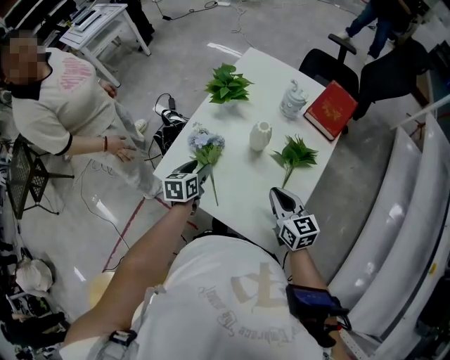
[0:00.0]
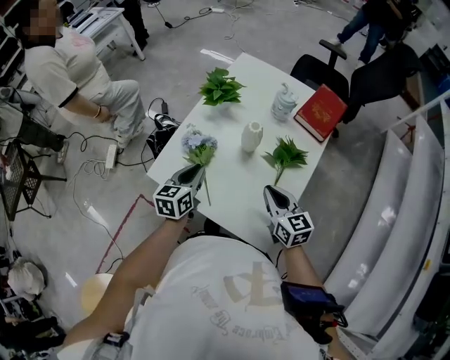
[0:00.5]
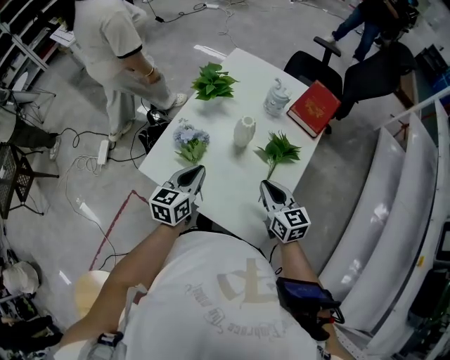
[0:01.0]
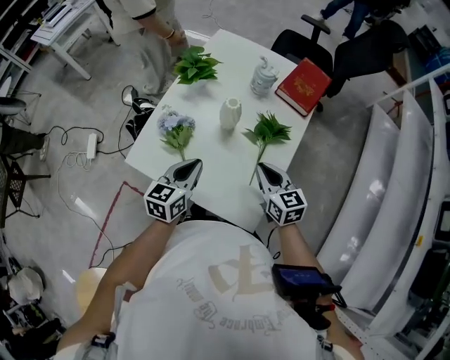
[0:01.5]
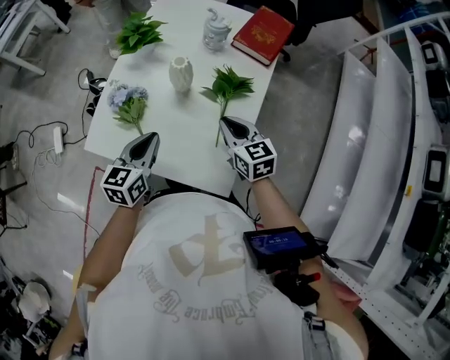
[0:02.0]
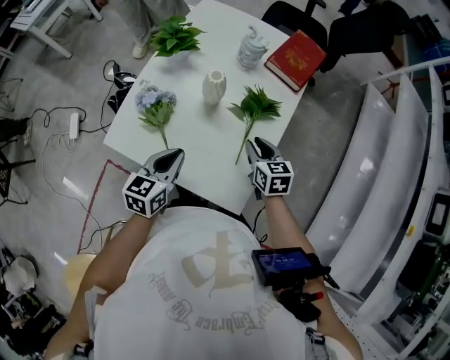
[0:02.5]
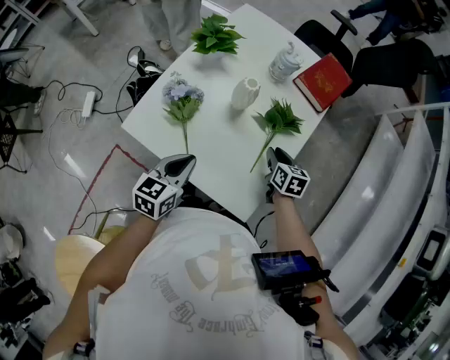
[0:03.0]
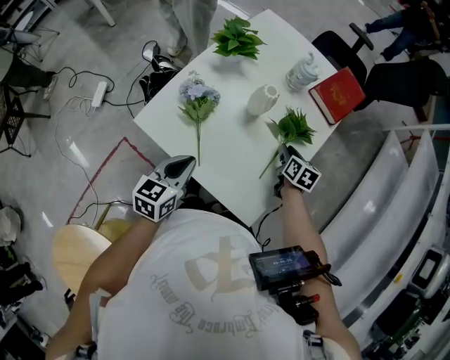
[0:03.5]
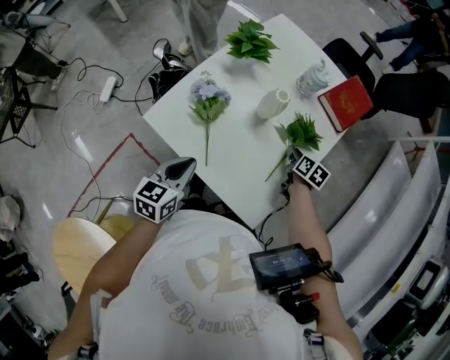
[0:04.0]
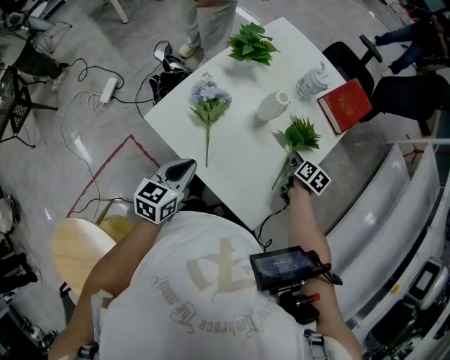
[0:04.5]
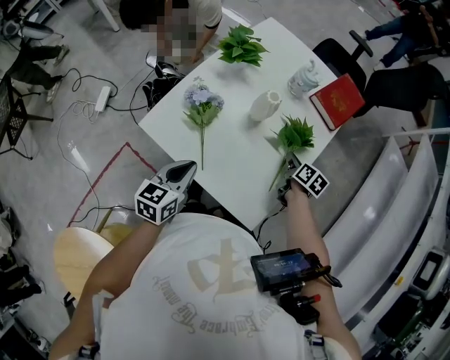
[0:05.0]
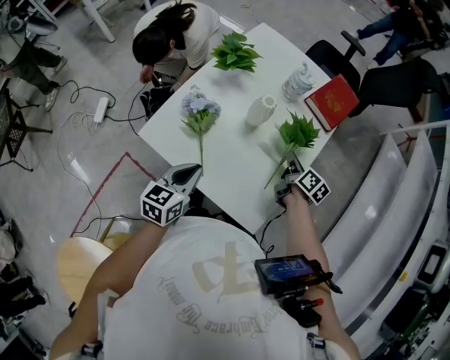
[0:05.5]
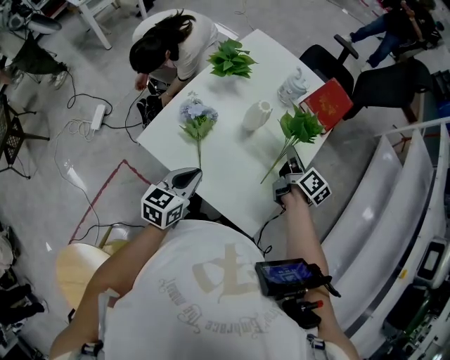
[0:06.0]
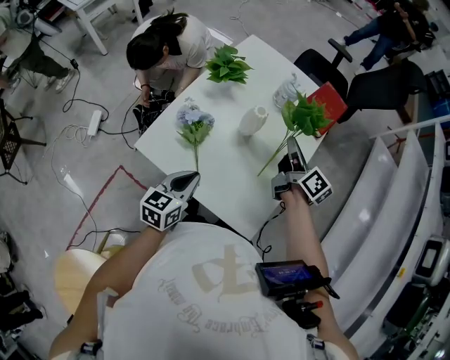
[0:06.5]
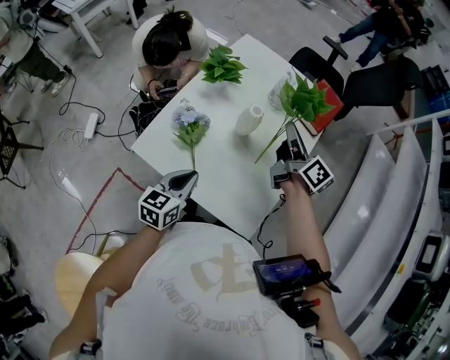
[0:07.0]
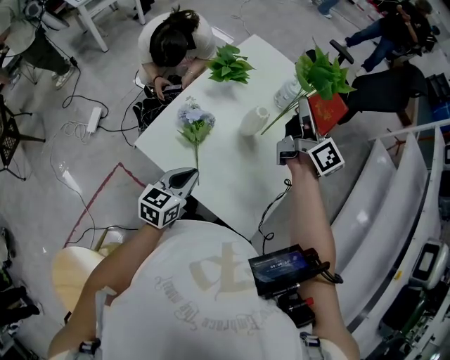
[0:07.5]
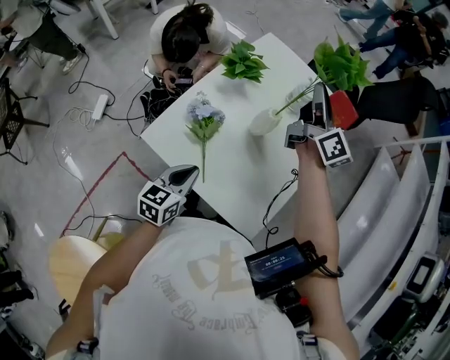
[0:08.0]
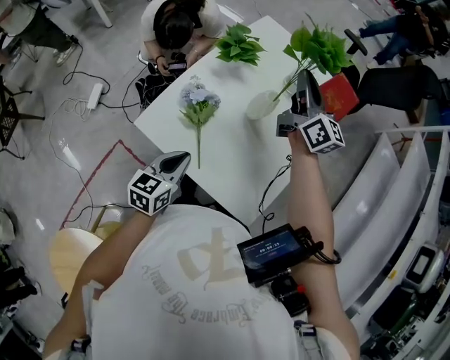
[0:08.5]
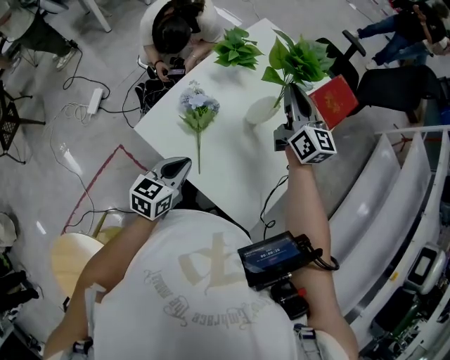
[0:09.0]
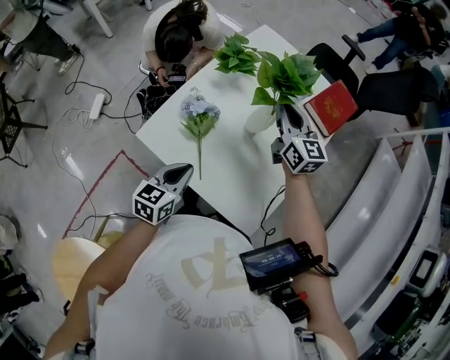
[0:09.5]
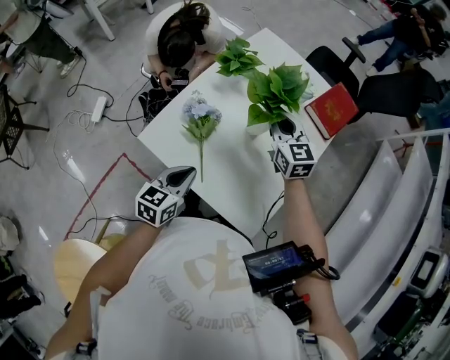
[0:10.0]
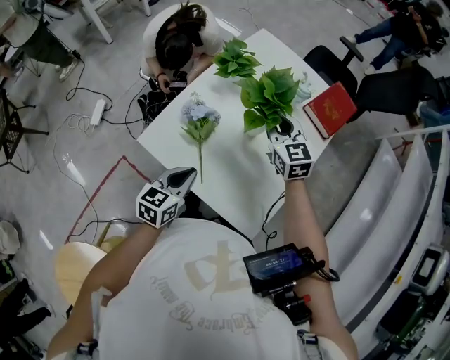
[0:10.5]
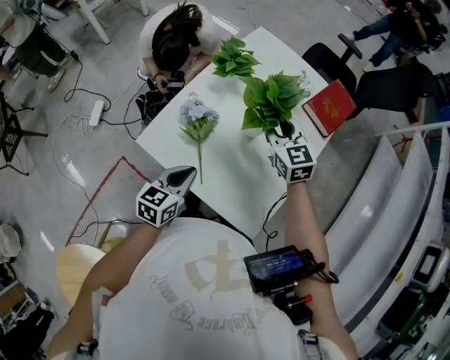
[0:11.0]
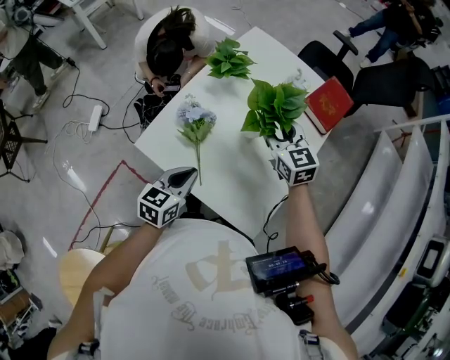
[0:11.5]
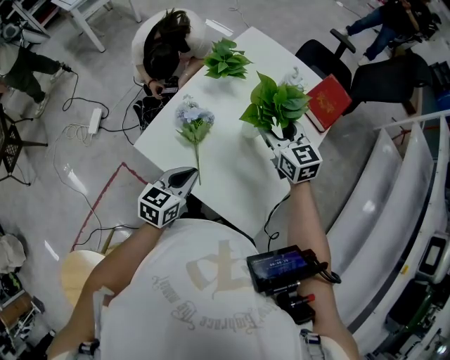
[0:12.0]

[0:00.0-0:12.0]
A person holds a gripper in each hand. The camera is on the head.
0:00.0 to 0:02.0: The right gripper is displaced to the right by about 5 cm; the left gripper goes about 15 cm to the right, upward and backward, changes its angle by approximately 20 degrees, and closes up.
0:02.0 to 0:04.0: The right gripper heads downward and forward, covering approximately 15 cm, and swivels some 30 degrees. Meanwhile the left gripper moves to the left and backward, about 10 cm.
0:04.0 to 0:06.0: The right gripper heads upward, covering approximately 15 cm, and changes its angle by about 30 degrees.
0:06.0 to 0:08.0: The right gripper heads upward, forward and to the left, covering some 25 cm, and tilts its fingers about 30 degrees upward.
0:08.0 to 0:10.0: The right gripper shifts roughly 15 cm downward, backward and to the left, and changes its angle by roughly 50 degrees.
0:10.0 to 0:12.0: The right gripper opens.

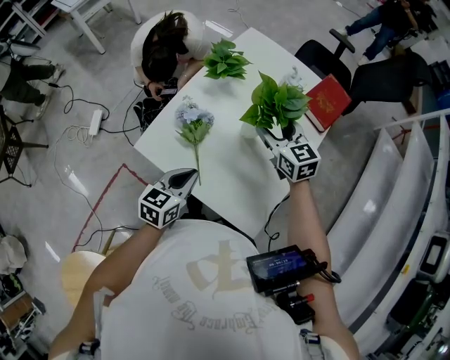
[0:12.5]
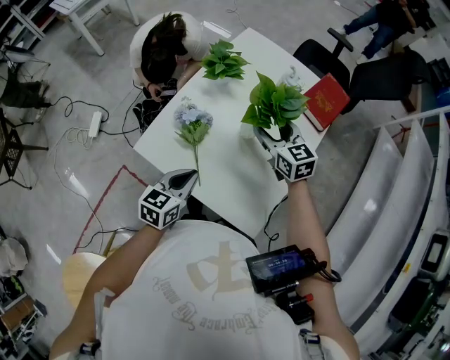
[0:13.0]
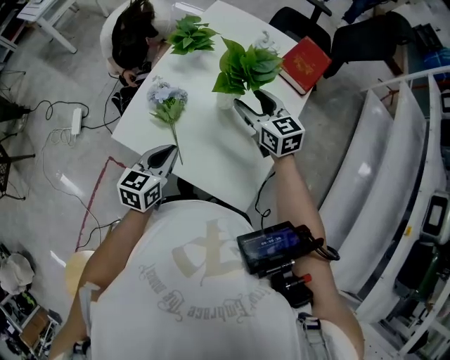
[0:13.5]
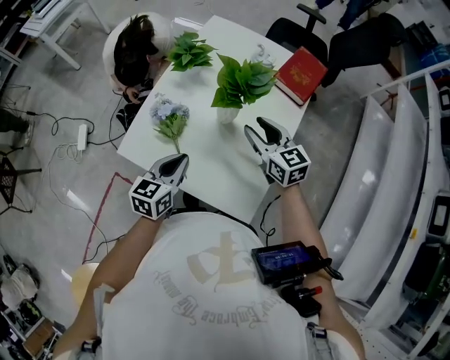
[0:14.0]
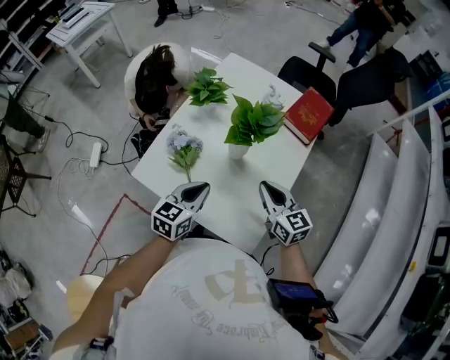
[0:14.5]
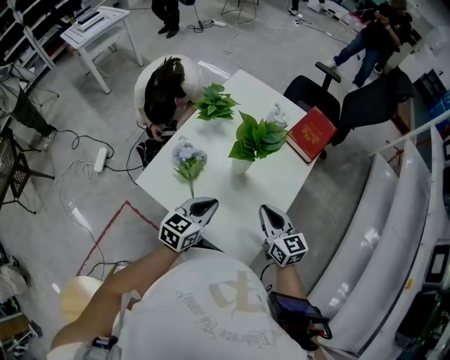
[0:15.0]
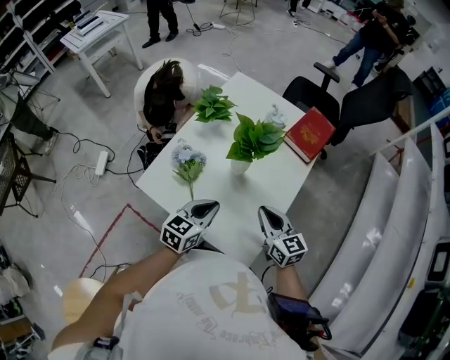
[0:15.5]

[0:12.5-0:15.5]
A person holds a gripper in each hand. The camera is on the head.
0:12.5 to 0:14.0: The right gripper travels backward and to the right by roughly 10 cm.
0:14.0 to 0:15.5: The left gripper shifts approximately 5 cm to the right; the right gripper heads backward, covering about 10 cm, and closes its fingers.

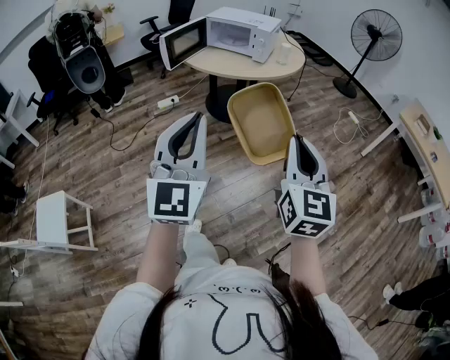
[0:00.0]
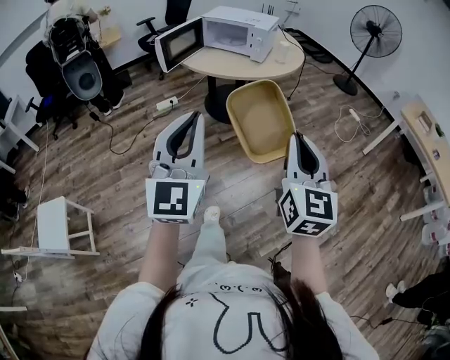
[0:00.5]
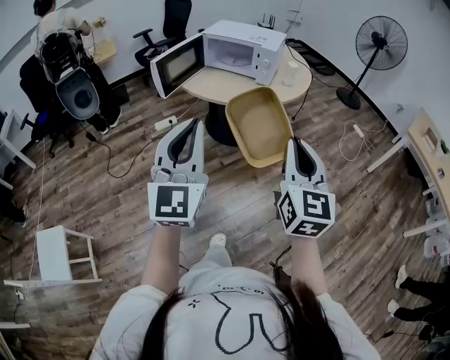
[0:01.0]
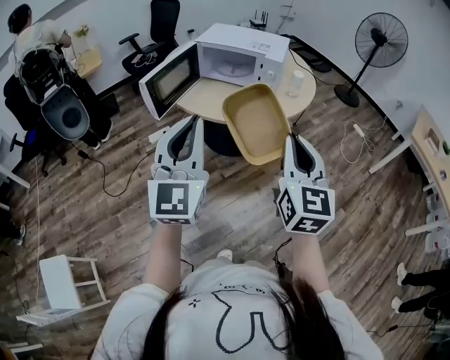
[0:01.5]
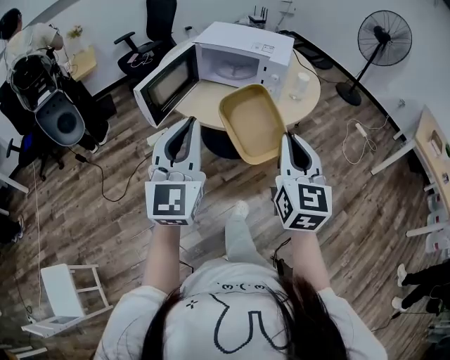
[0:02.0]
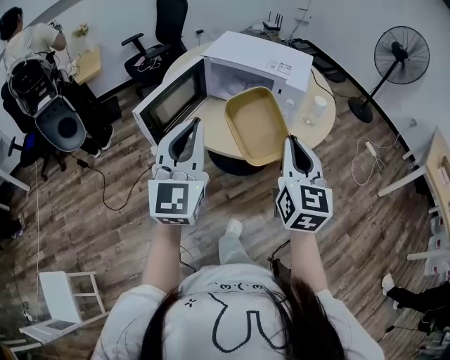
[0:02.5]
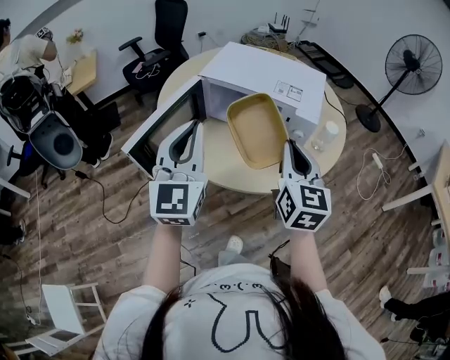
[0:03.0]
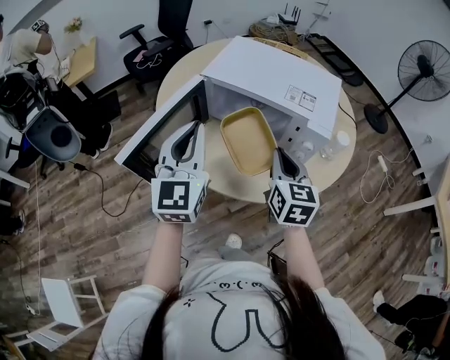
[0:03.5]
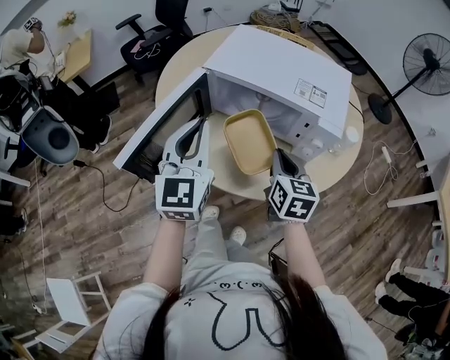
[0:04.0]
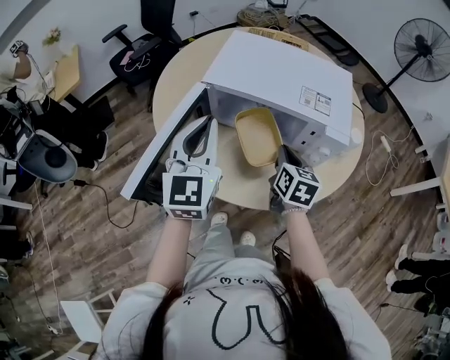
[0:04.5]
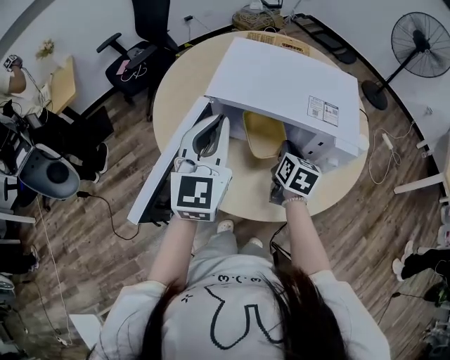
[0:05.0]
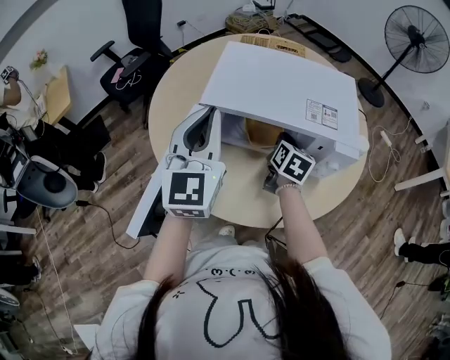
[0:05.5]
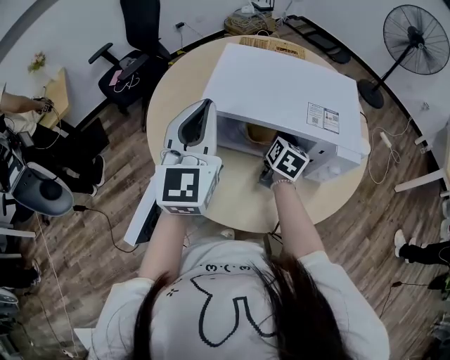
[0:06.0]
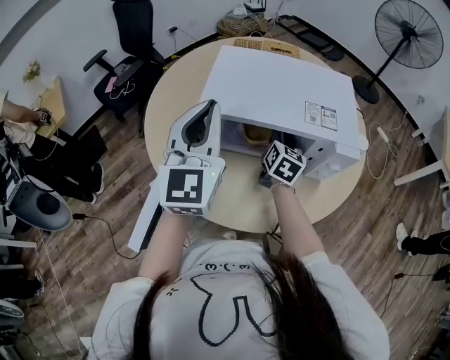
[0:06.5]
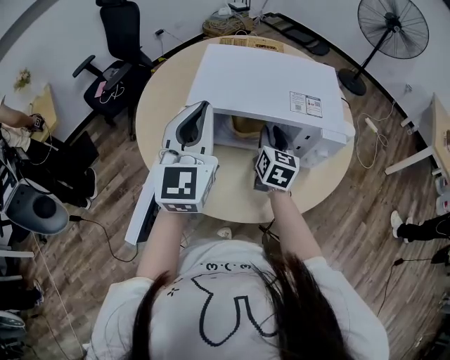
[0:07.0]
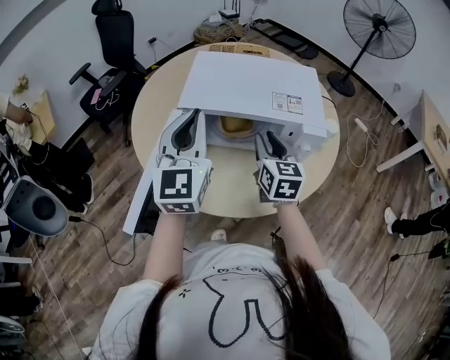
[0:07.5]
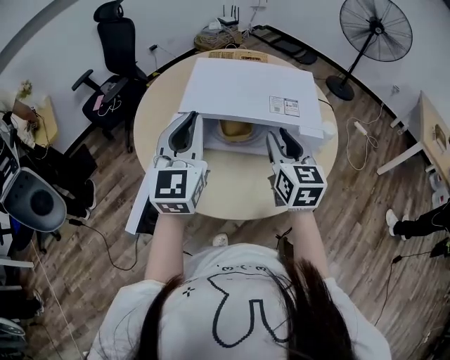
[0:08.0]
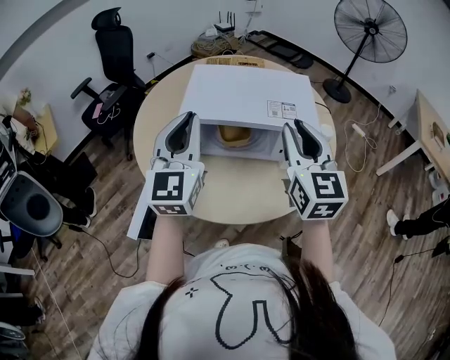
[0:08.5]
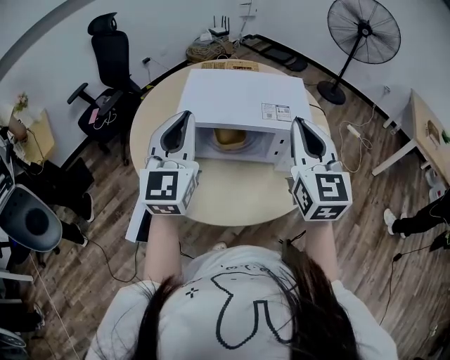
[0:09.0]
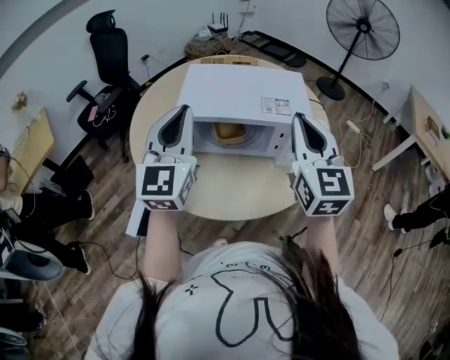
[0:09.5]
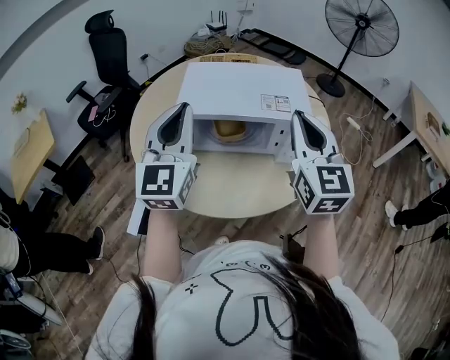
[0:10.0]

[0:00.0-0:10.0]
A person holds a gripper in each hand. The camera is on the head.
0:00.0 to 0:02.0: The two grippers travel together, forward, about 40 cm.
0:02.0 to 0:04.0: The right gripper is displaced forward and downward by approximately 40 cm, and swivels about 30 degrees. Meanwhile the left gripper heads forward, covering roughly 40 cm.
0:04.0 to 0:06.0: The grippers both shift forward by approximately 15 cm. The right gripper rotates some 30 degrees.
0:06.0 to 0:08.0: The left gripper is displaced backward by approximately 5 cm; the right gripper moves upward and backward, some 25 cm, swivels some 30 degrees, and opens up.
0:08.0 to 0:10.0: The right gripper goes about 10 cm upward, and closes its fingers.

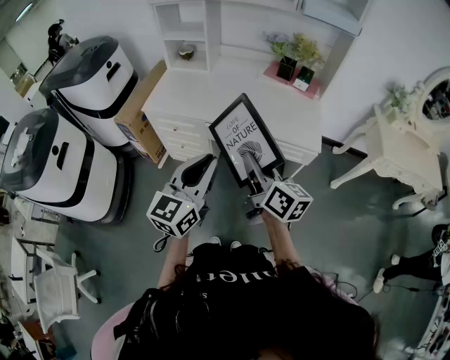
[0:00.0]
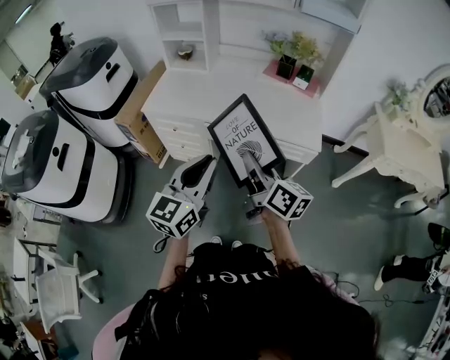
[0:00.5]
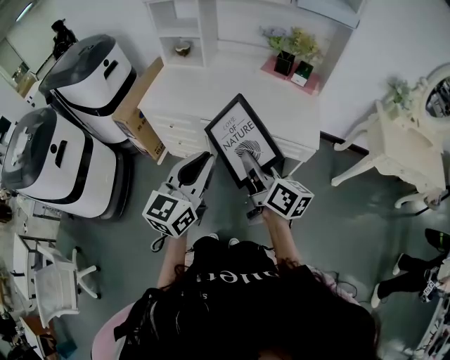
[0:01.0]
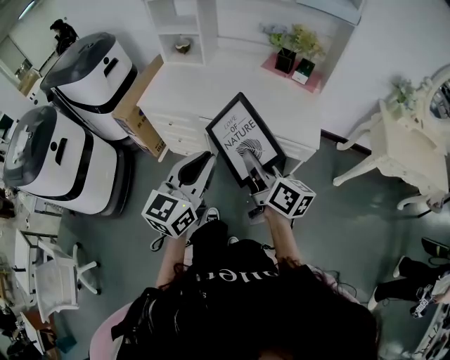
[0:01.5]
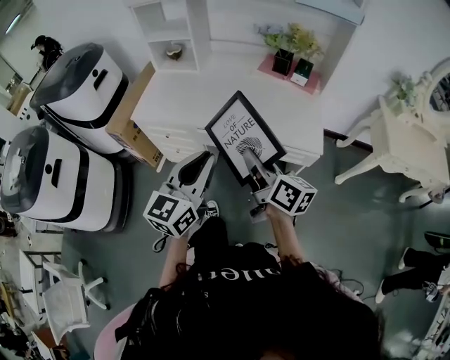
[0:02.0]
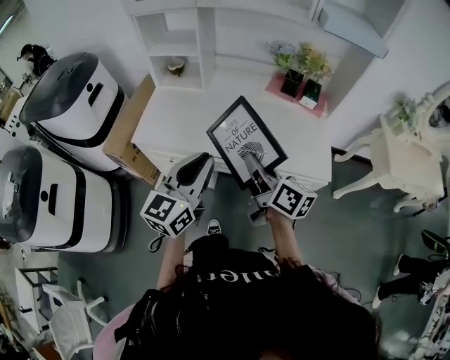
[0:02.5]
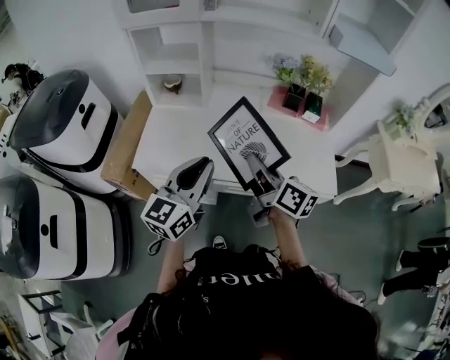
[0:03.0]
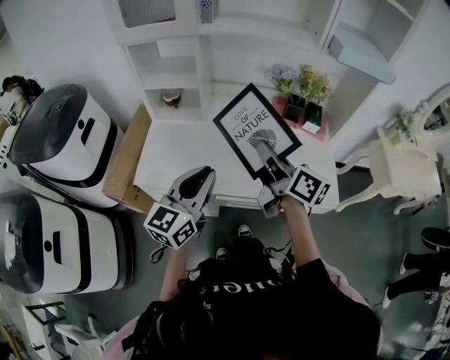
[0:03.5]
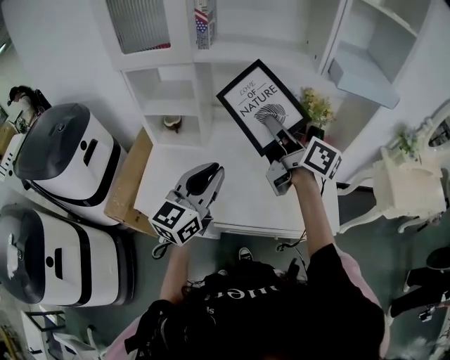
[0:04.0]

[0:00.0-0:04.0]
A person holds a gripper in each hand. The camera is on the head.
0:00.0 to 0:02.0: The grippers both shift forward by roughly 10 cm.
0:02.0 to 0:04.0: The right gripper shifts some 40 cm forward and upward. Meanwhile the left gripper is displaced forward by about 35 cm.
